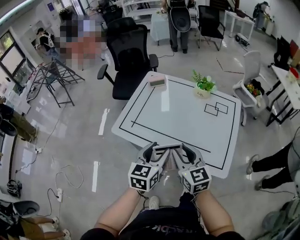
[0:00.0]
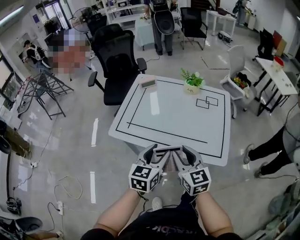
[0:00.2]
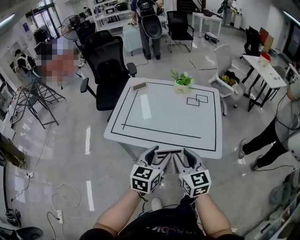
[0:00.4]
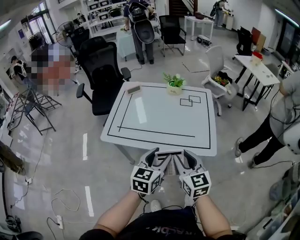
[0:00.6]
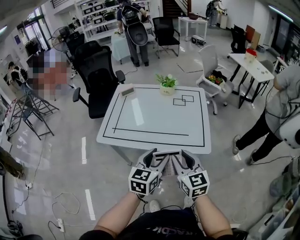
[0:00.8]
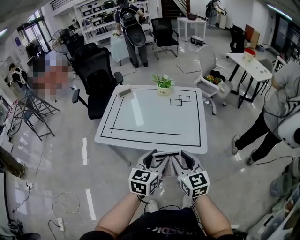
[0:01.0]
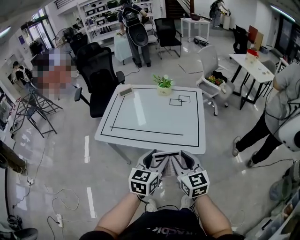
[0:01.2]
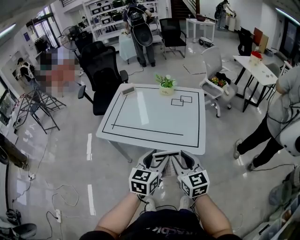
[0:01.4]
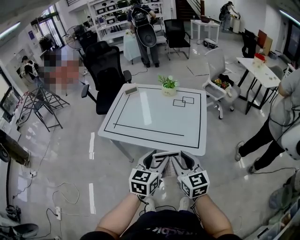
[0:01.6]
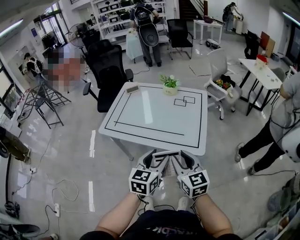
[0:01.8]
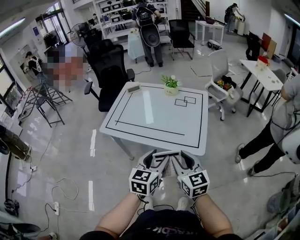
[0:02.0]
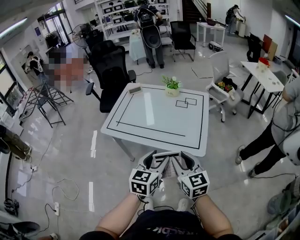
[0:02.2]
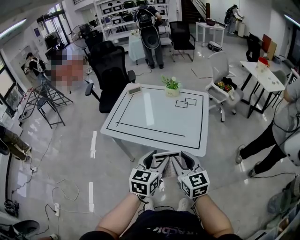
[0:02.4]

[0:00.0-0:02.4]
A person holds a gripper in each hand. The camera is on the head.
0:00.0 to 0:01.2: Both grippers move backward and to the right, about 20 cm.
0:01.2 to 0:02.4: The grippers make only small movements.

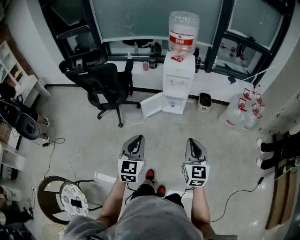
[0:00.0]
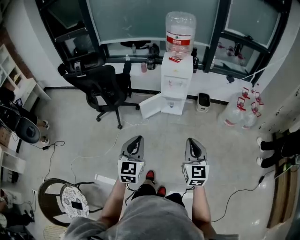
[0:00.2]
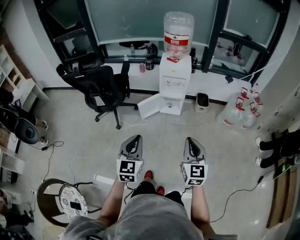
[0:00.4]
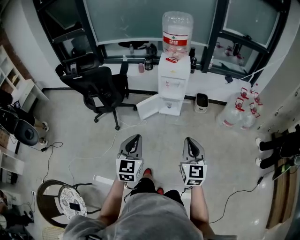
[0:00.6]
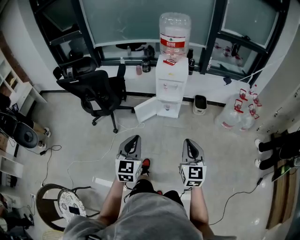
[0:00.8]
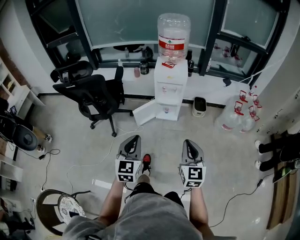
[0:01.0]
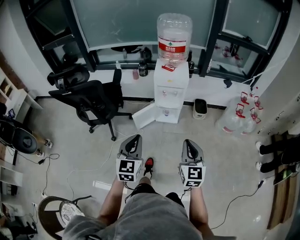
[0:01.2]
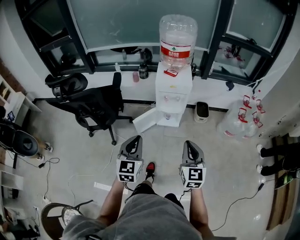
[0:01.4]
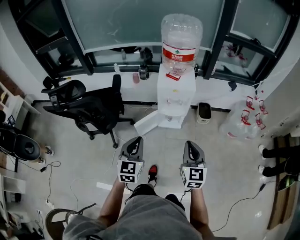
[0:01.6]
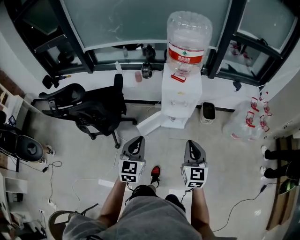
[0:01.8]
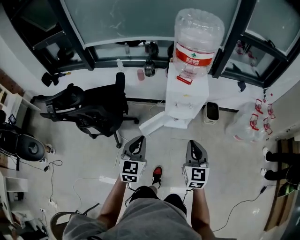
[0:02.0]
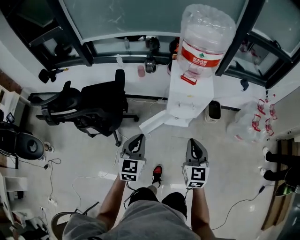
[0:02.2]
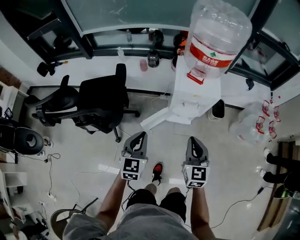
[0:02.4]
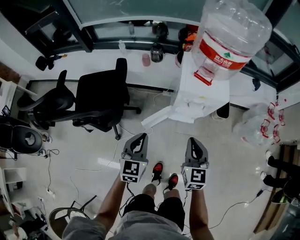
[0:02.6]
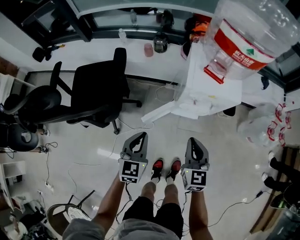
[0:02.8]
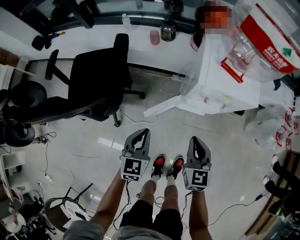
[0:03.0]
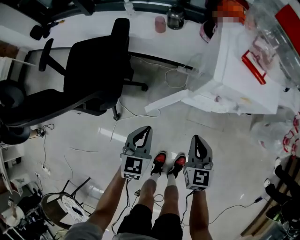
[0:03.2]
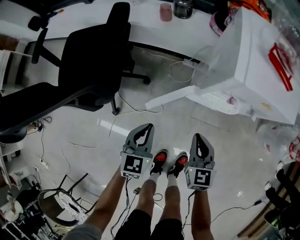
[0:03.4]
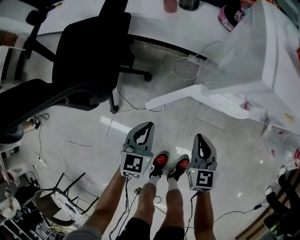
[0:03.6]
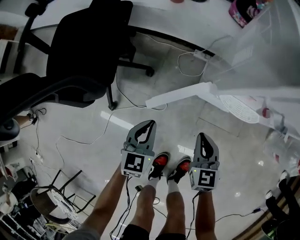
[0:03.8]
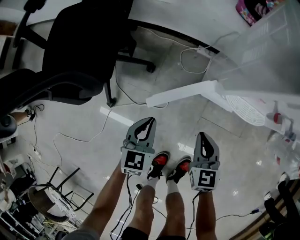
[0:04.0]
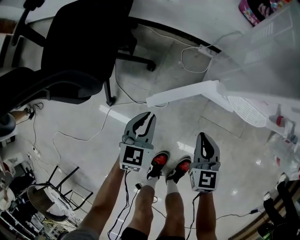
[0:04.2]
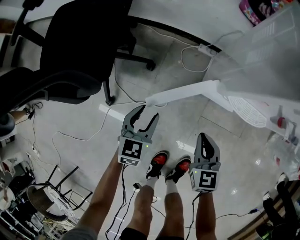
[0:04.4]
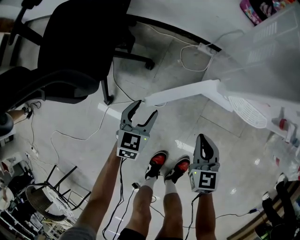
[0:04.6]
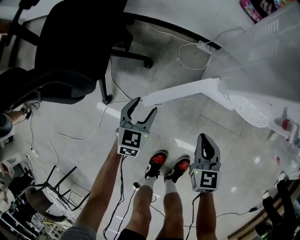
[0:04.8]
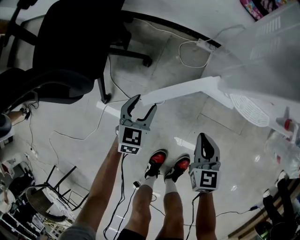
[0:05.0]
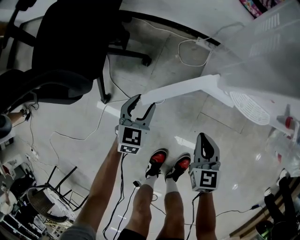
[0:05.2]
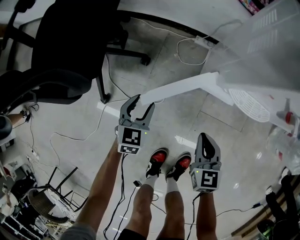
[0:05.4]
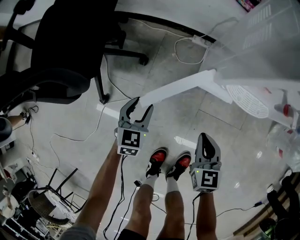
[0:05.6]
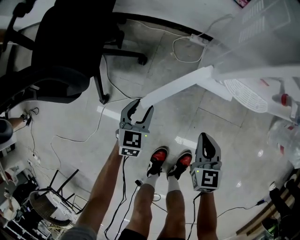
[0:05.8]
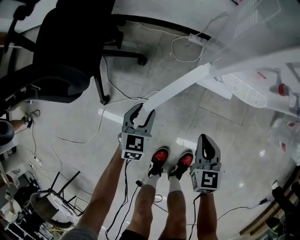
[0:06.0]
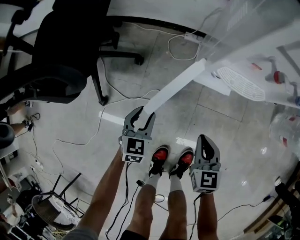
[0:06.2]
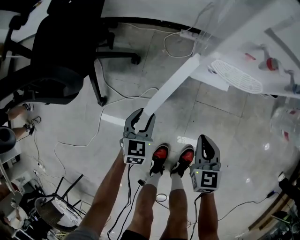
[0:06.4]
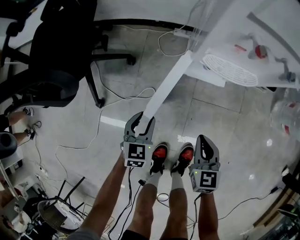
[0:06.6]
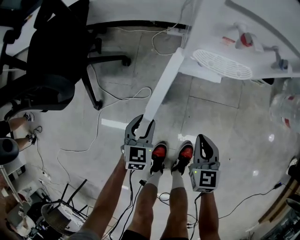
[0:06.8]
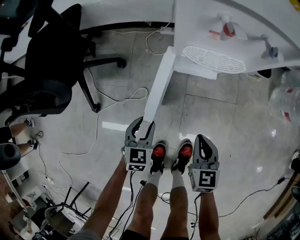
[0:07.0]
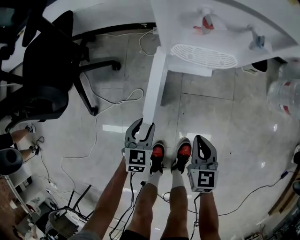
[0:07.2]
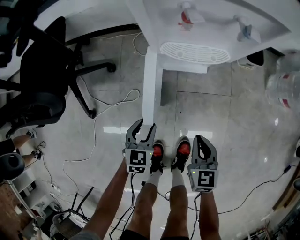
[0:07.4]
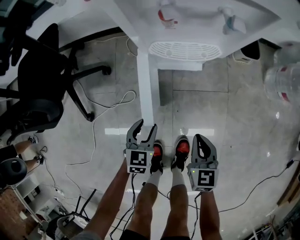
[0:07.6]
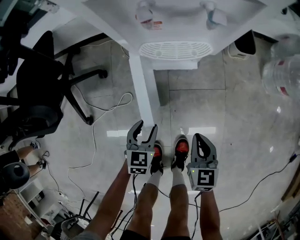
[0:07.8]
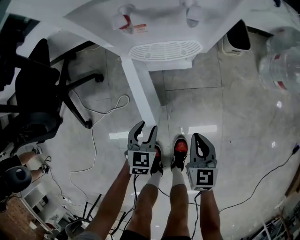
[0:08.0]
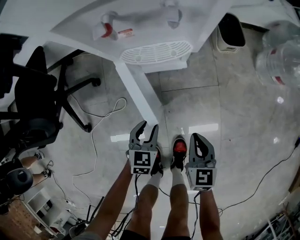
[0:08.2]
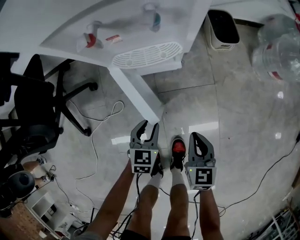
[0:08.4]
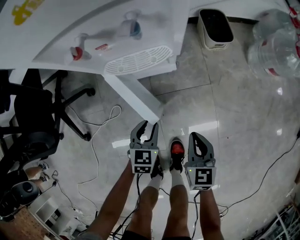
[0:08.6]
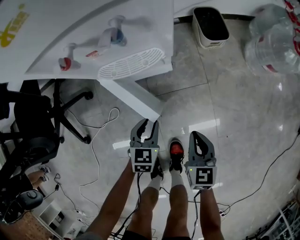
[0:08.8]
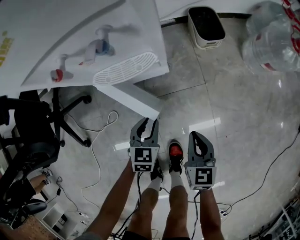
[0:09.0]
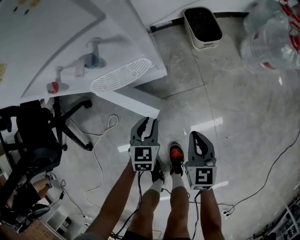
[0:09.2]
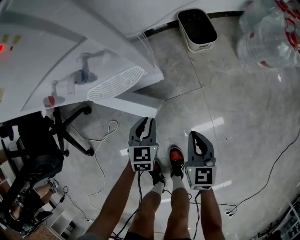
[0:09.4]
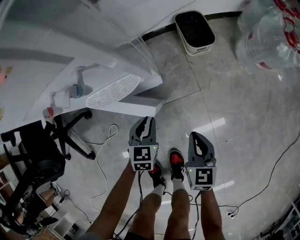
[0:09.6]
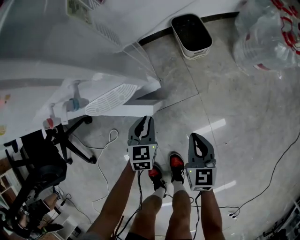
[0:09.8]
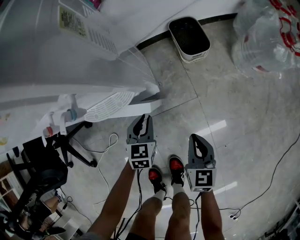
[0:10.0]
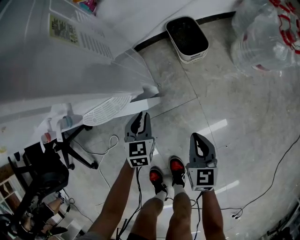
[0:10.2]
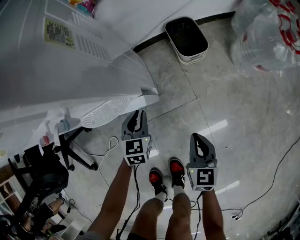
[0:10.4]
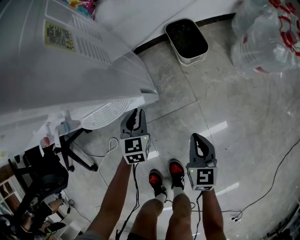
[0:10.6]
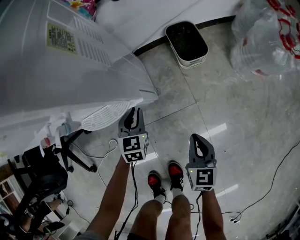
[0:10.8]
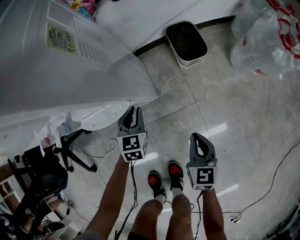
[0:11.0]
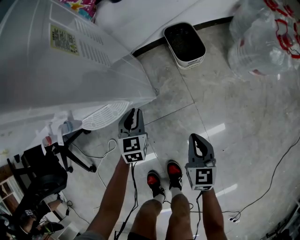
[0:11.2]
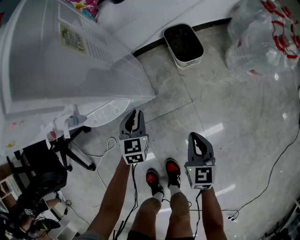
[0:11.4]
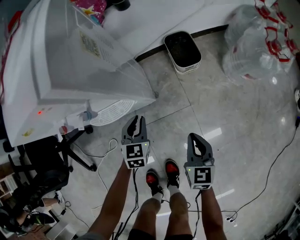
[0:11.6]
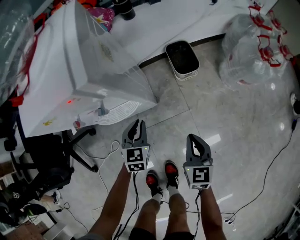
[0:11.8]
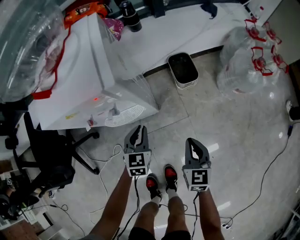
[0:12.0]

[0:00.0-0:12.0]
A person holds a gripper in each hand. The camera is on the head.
0:00.0 to 0:01.6: Both grippers travel together forward, roughly 30 cm.
0:01.6 to 0:03.0: The right gripper moves downward, forward and to the left, approximately 35 cm; the left gripper heads downward and forward, covering some 35 cm.
0:03.0 to 0:04.4: Both grippers travel together downward, roughly 35 cm. The left gripper opens up.
0:04.4 to 0:06.0: The left gripper goes roughly 5 cm downward; the right gripper heads backward, covering some 5 cm.
0:06.0 to 0:07.6: The grippers both shift to the right and backward by some 20 cm.
0:07.6 to 0:09.0: The right gripper heads to the right, covering some 10 cm, while the left gripper travels to the right and forward by approximately 15 cm.
0:09.0 to 0:10.4: The right gripper heads forward and to the right, covering approximately 10 cm. The left gripper moves forward, approximately 15 cm.
0:10.4 to 0:12.0: Both grippers travel together upward, about 15 cm.

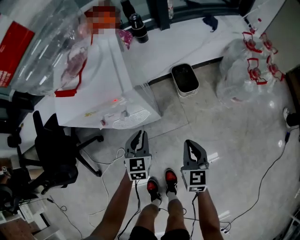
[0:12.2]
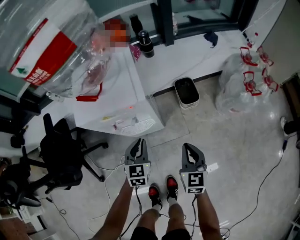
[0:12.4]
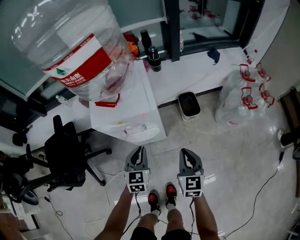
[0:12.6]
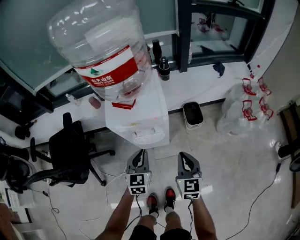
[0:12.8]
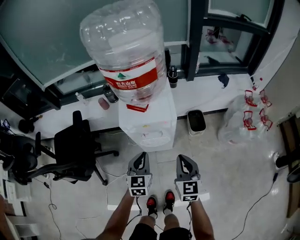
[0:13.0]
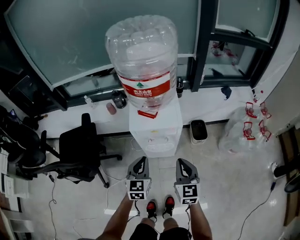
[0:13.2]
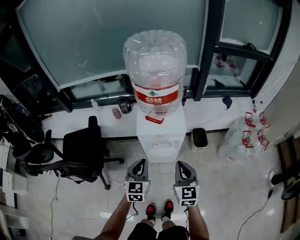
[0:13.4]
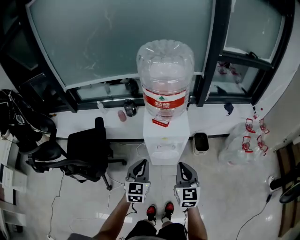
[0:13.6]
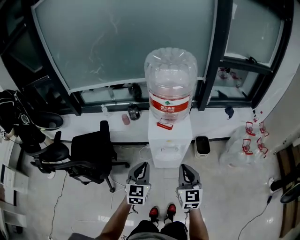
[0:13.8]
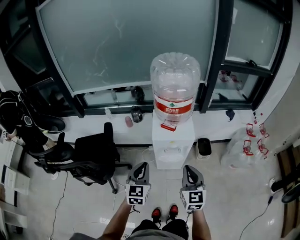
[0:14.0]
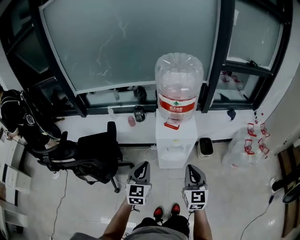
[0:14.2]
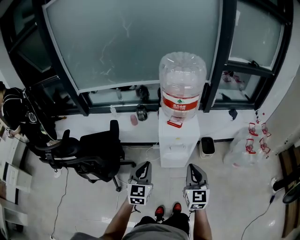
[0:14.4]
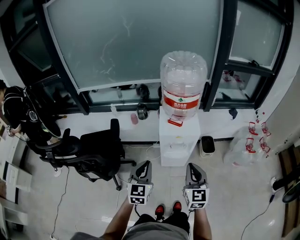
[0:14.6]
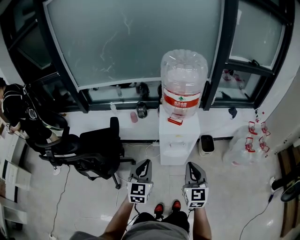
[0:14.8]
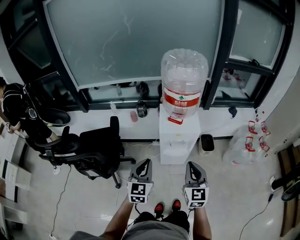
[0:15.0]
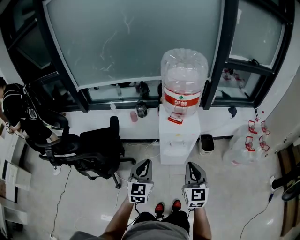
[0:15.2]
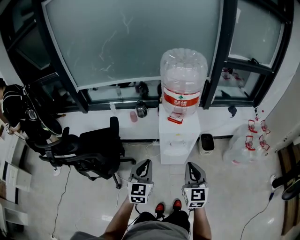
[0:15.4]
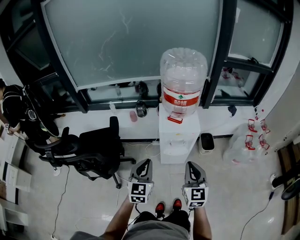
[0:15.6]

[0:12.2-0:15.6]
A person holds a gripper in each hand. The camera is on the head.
0:12.2 to 0:13.8: The grippers both shift upward and to the left by approximately 40 cm. The right gripper swivels some 20 degrees.
0:13.8 to 0:15.6: The left gripper is displaced to the left and backward by some 10 cm. Meanwhile the right gripper goes some 5 cm backward.

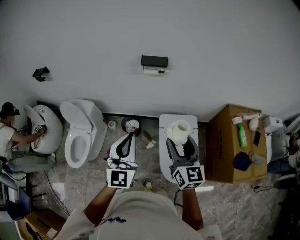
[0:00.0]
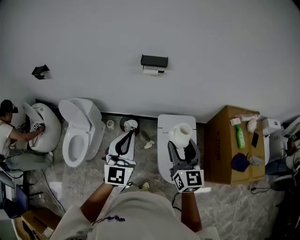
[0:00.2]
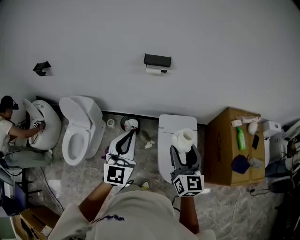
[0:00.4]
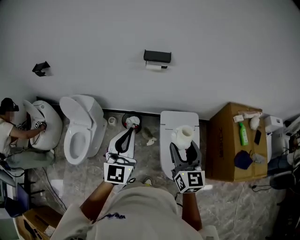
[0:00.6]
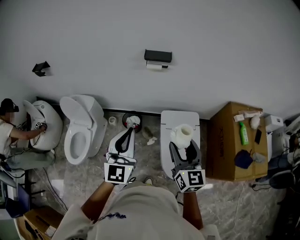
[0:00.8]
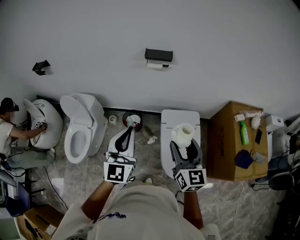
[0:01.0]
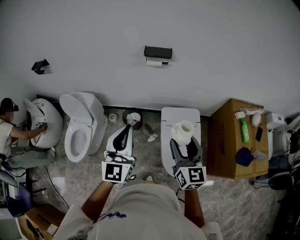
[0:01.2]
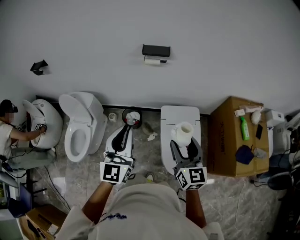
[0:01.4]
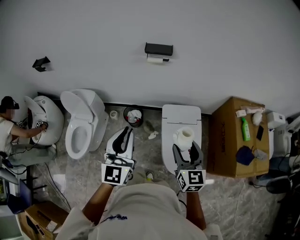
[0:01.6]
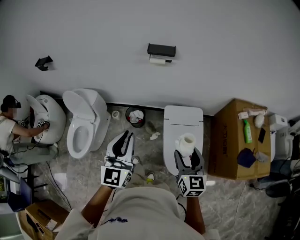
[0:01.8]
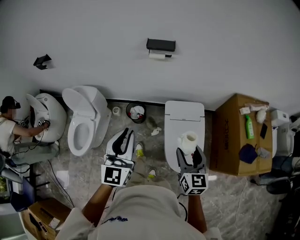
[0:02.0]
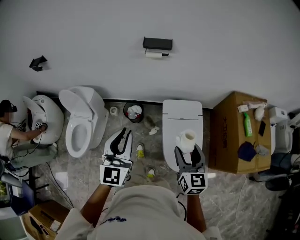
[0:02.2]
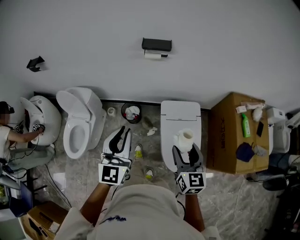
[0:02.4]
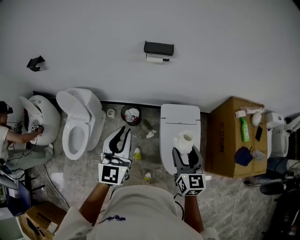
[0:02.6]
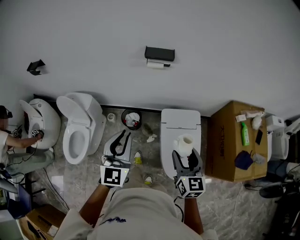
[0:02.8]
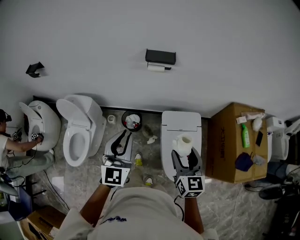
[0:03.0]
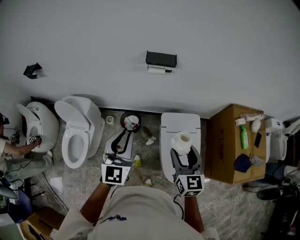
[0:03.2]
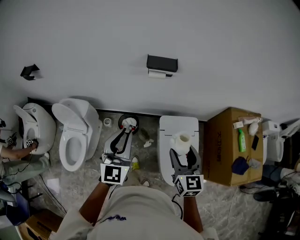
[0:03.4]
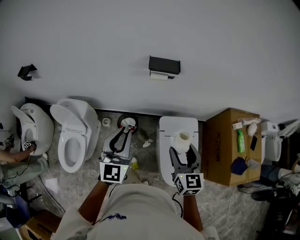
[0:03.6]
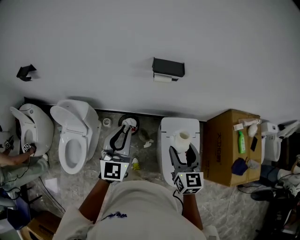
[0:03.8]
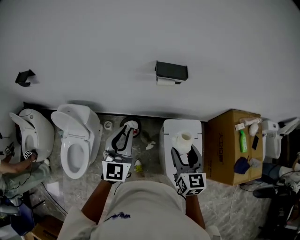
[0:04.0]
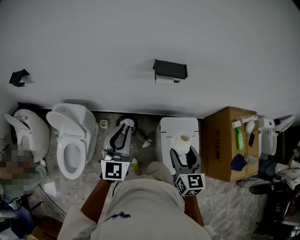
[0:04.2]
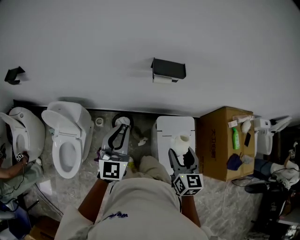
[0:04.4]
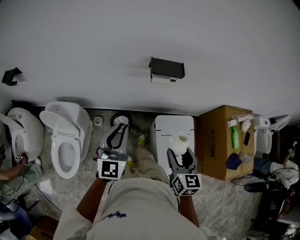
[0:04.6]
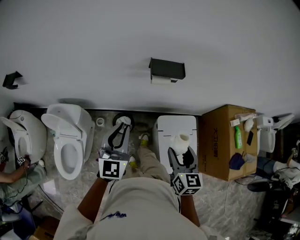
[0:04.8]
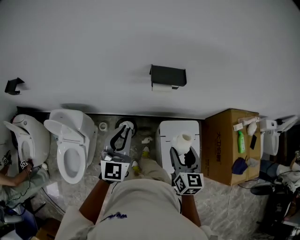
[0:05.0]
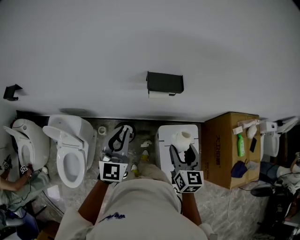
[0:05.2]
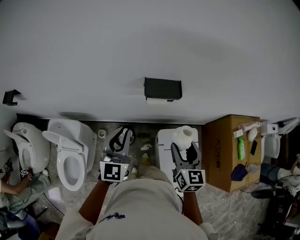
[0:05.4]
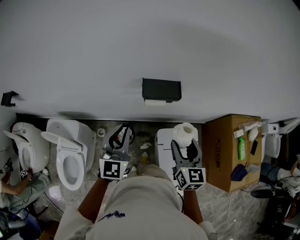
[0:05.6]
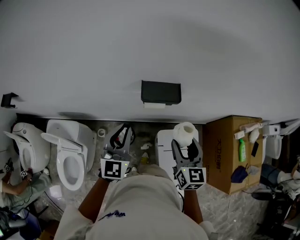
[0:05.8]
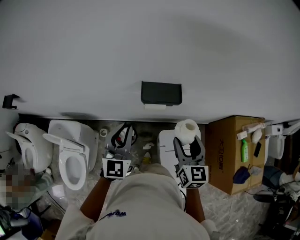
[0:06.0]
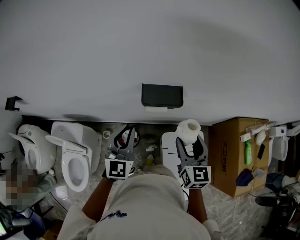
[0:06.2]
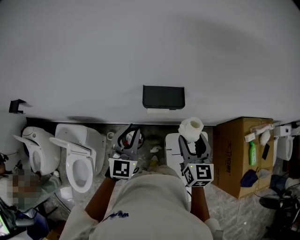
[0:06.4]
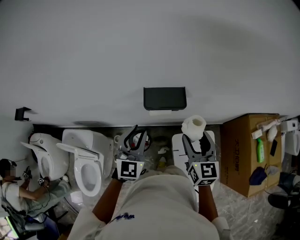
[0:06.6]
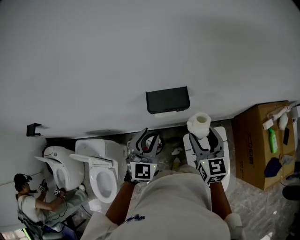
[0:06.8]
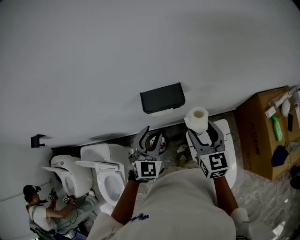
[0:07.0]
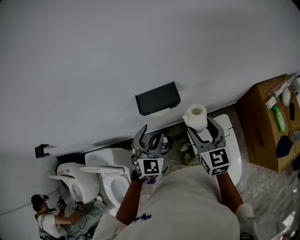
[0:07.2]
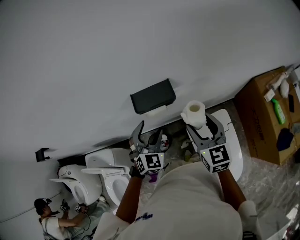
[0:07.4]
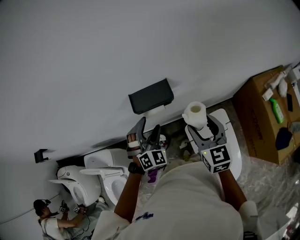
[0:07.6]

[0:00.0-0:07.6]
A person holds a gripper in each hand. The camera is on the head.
0:00.0 to 0:01.6: The right gripper shifts about 5 cm downward.
0:01.6 to 0:03.0: Both grippers move forward, some 5 cm.
0:03.0 to 0:04.6: The two grippers go approximately 15 cm forward and to the left.
0:04.6 to 0:06.0: The two grippers go about 20 cm forward.
0:06.0 to 0:07.6: The right gripper ends up roughly 5 cm from where it was, while the left gripper goes some 15 cm downward, to the right and forward, rotates around the line of its fingers by approximately 50 degrees, clockwise from behind, and opens its fingers.
